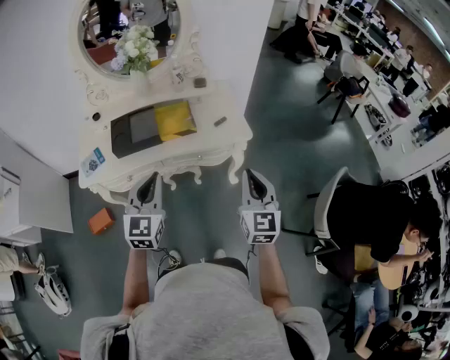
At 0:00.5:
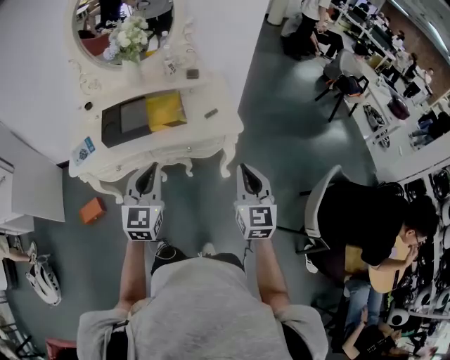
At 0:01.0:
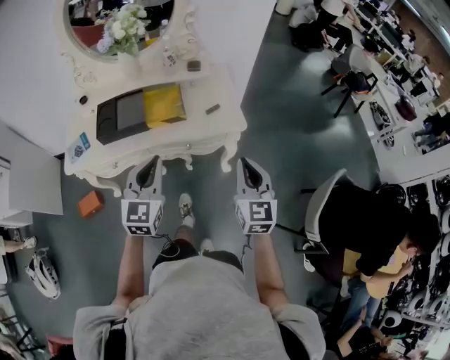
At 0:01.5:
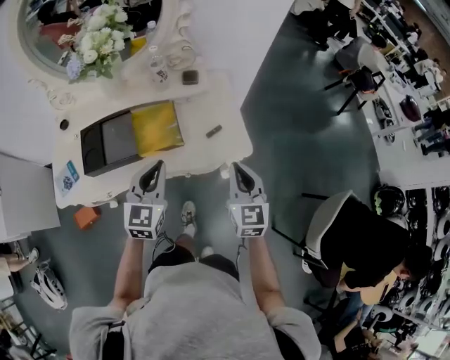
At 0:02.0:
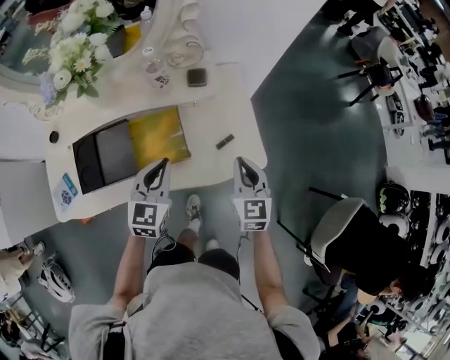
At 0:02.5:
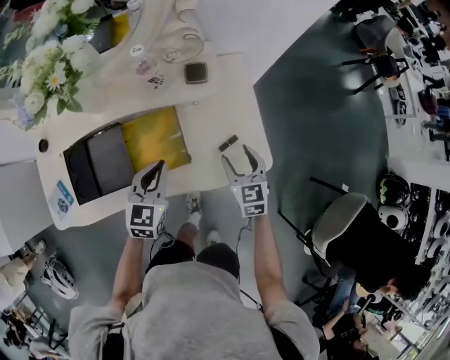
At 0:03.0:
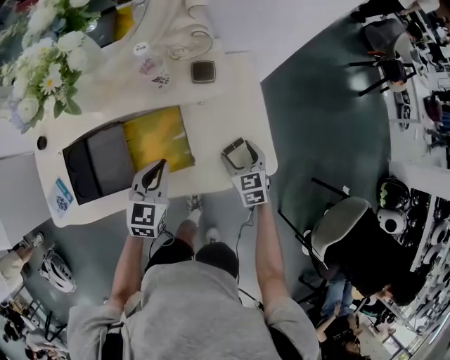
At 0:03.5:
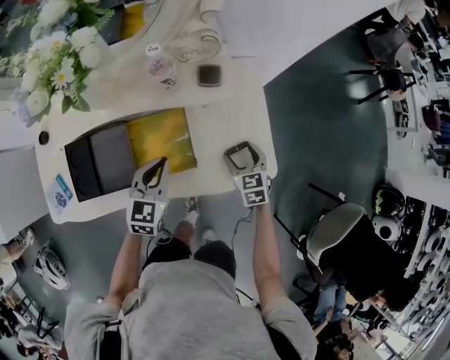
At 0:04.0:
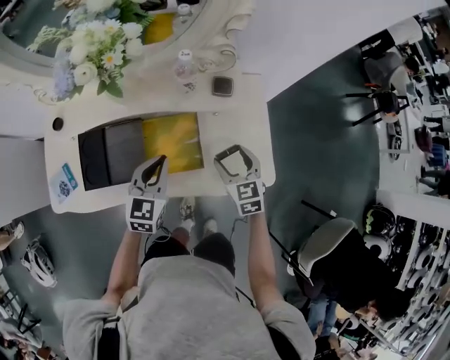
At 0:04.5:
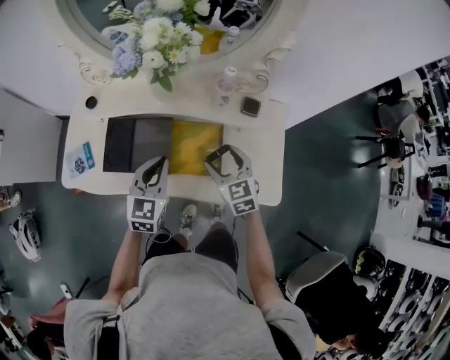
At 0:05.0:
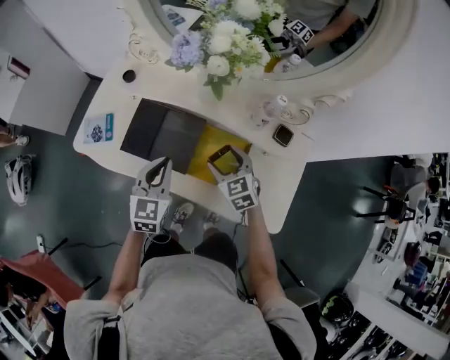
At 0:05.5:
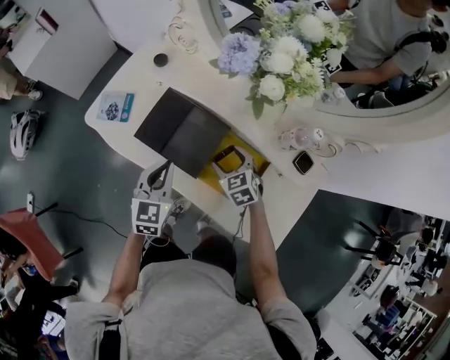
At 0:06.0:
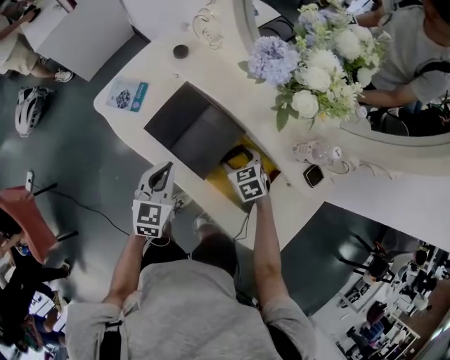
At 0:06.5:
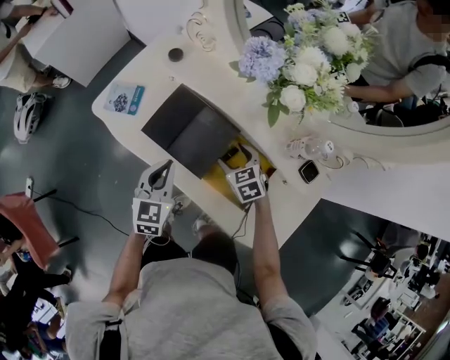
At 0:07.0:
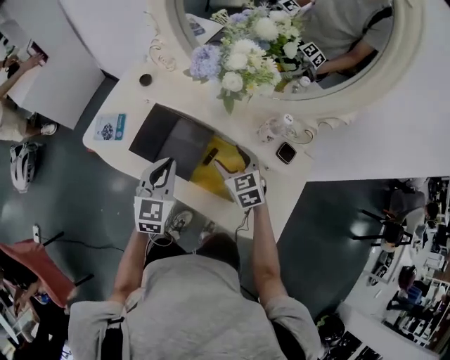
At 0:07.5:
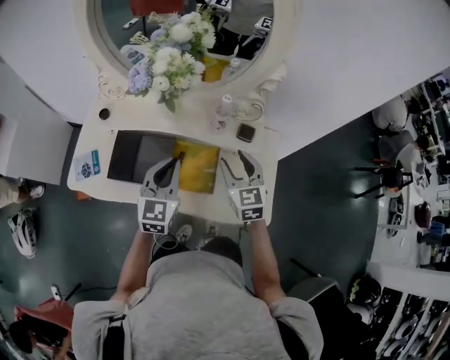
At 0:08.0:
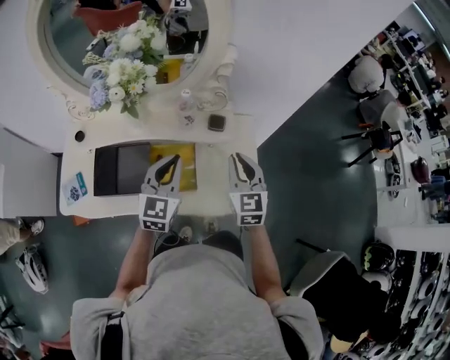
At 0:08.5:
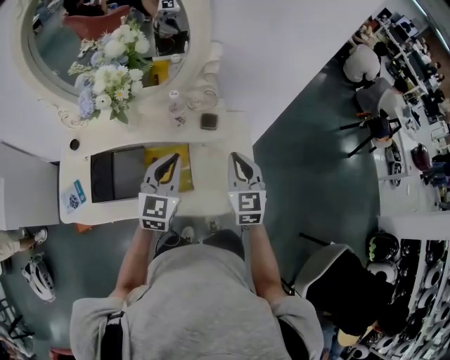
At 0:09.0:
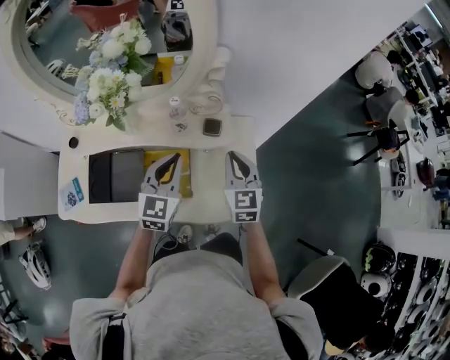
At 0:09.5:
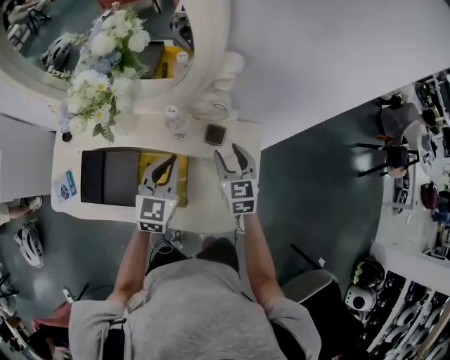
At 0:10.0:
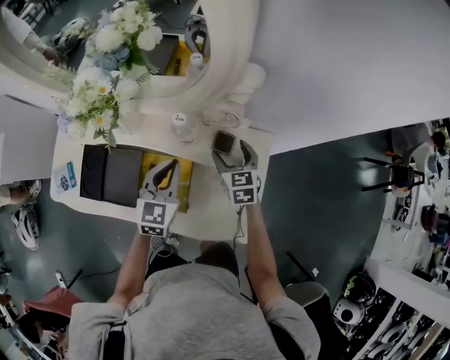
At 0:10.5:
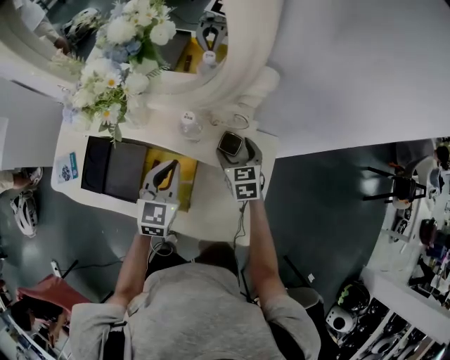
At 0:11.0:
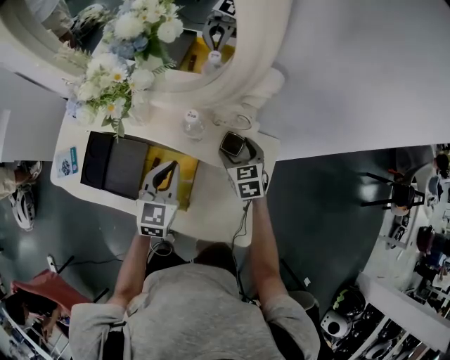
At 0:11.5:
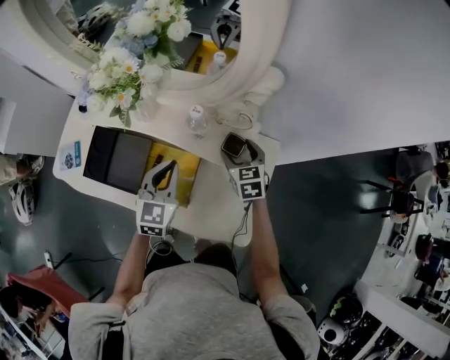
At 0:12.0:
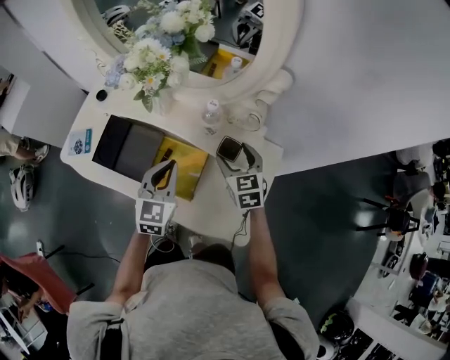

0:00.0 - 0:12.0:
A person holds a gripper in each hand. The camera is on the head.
0:00.0 - 0:02.0: The two grippers go roughly 35 cm forward and downward.
0:02.0 - 0:04.0: The left gripper goes approximately 5 cm to the left, while the right gripper goes about 15 cm to the left, forward and downward, changes its angle by approximately 20 degrees, and opens up.
0:04.0 - 0:06.0: The right gripper shifts by roughly 30 cm, and swivels roughly 60 degrees; the left gripper shifts by some 20 cm, and rotates some 50 degrees.
0:06.0 - 0:08.0: The right gripper changes place by roughly 40 cm, points its fingers roughly 40 degrees further upward, and closes. Meanwhile the left gripper shifts by approximately 30 cm, and rotates roughly 50 degrees.
0:08.0 - 0:10.0: The right gripper goes some 25 cm forward and downward, turns by some 30 degrees, and opens up, while the left gripper heads forward and downward, covering roughly 15 cm.
0:10.0 - 0:12.0: The left gripper shifts about 10 cm backward and to the left. Meanwhile the right gripper shifts some 10 cm upward and to the left.

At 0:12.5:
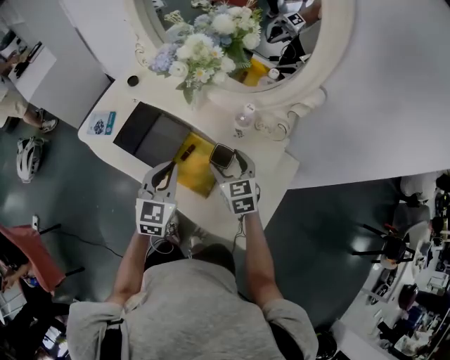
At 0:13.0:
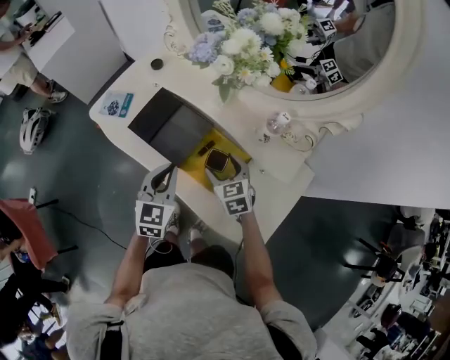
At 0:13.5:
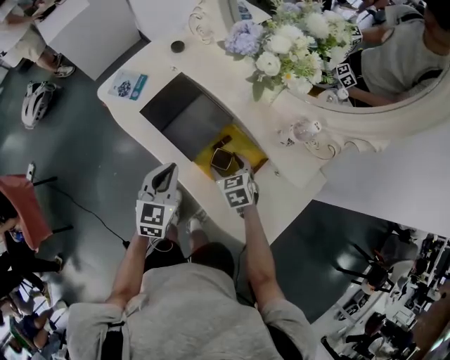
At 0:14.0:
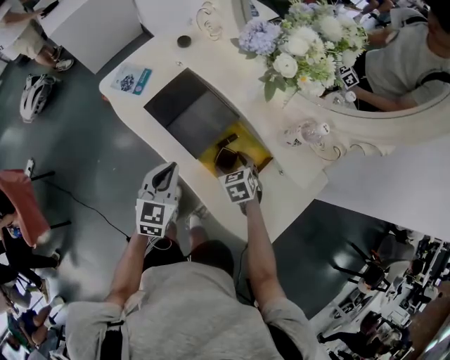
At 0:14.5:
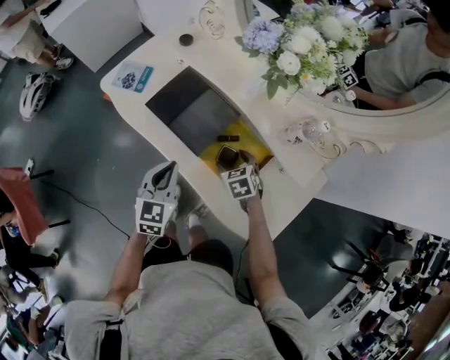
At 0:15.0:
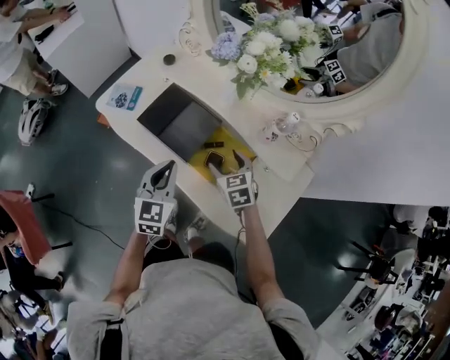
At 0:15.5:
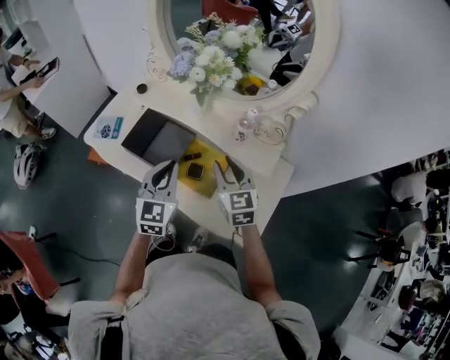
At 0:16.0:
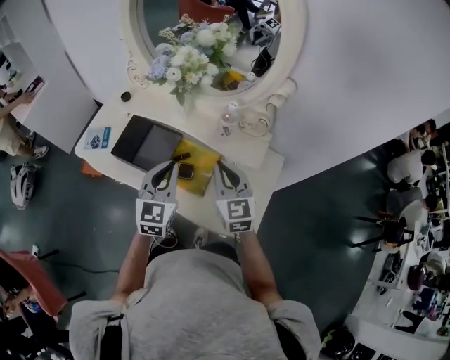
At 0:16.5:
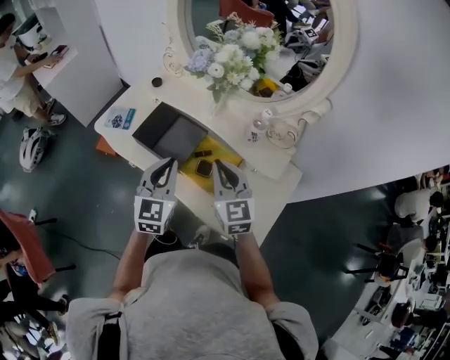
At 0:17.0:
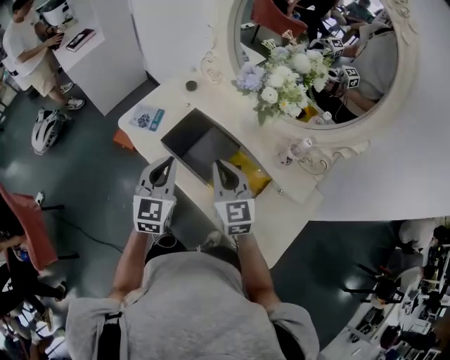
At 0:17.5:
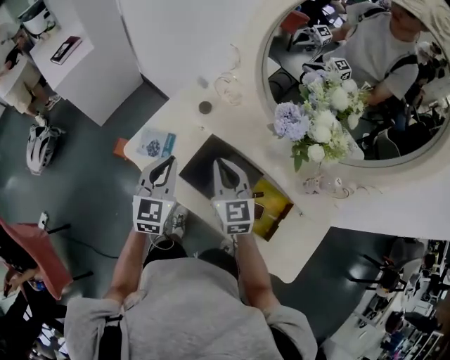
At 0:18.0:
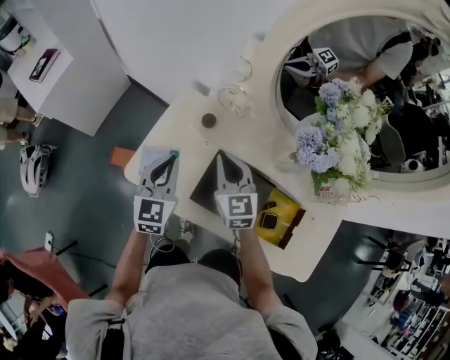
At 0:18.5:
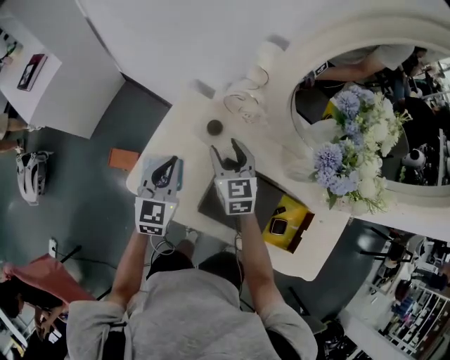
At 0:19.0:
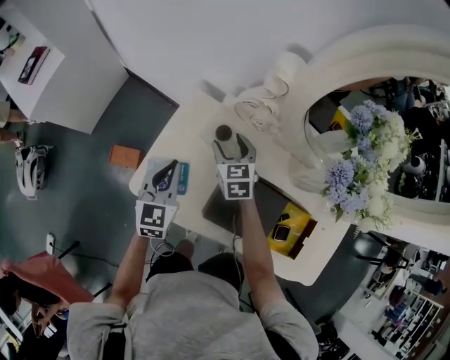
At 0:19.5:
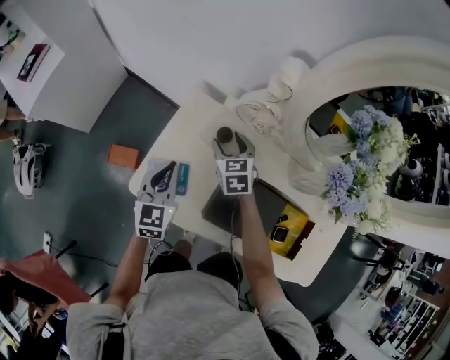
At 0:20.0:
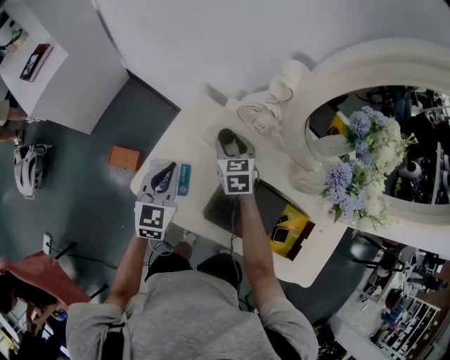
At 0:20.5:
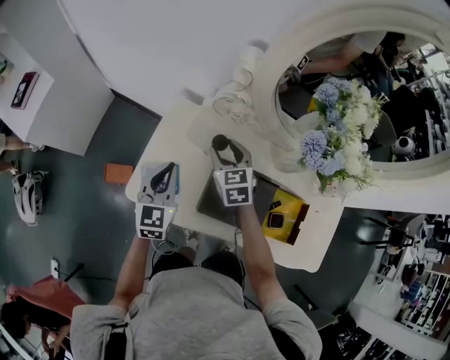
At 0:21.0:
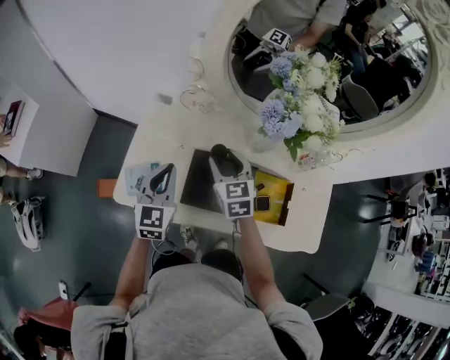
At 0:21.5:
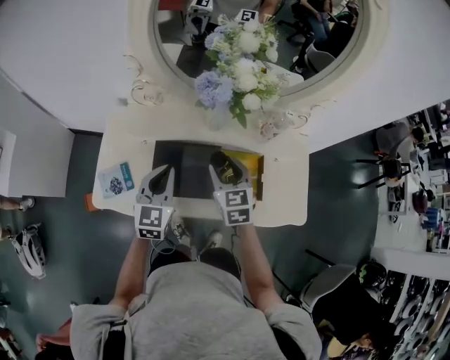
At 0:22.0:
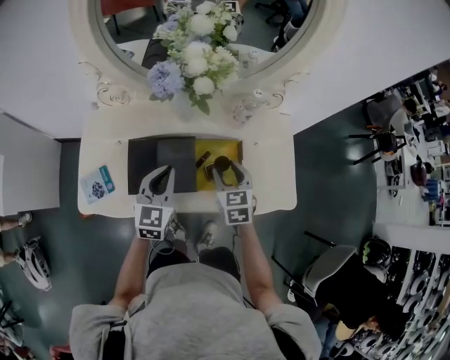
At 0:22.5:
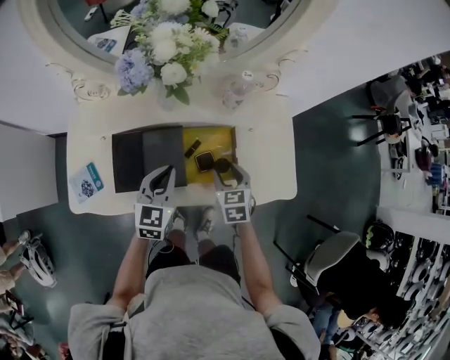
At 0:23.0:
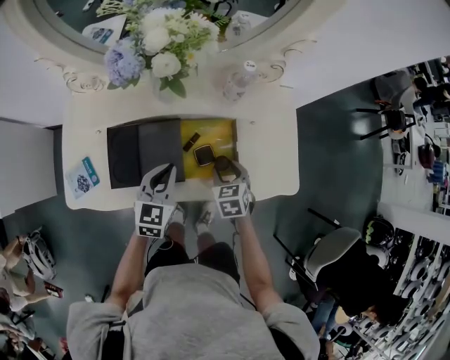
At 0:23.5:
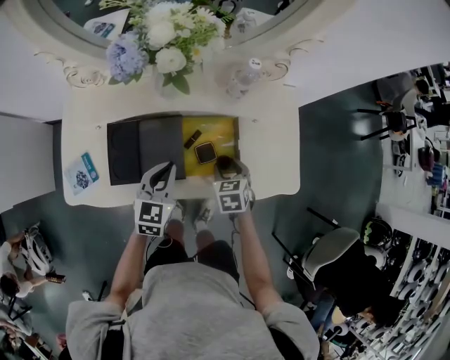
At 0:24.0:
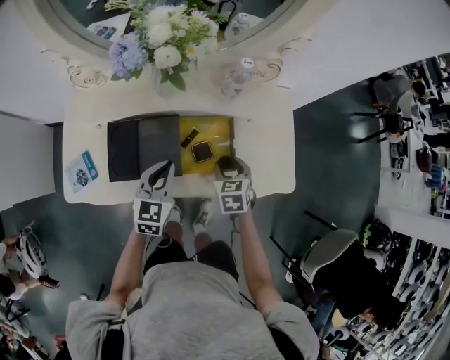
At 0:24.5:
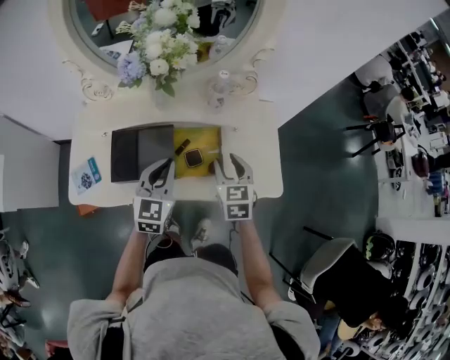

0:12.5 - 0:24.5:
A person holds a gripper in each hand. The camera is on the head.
0:12.5 - 0:14.5: The left gripper travels to the left and downward by approximately 15 cm. Meanwhile the right gripper is displaced downward and to the left by approximately 20 cm, and swivels roughly 30 degrees.
0:14.5 - 0:16.5: The left gripper travels upward and to the right by about 15 cm. The right gripper goes approximately 25 cm upward, points its fingers some 50 degrees further upward, and closes its fingers.
0:16.5 - 0:18.5: The two grippers travel together, forward and to the left, roughly 40 cm. The right gripper opens up.
0:20.5 - 0:22.5: The right gripper shifts by some 40 cm, and turns by roughly 30 degrees; the left gripper shifts by some 35 cm, and turns by about 30 degrees.
0:22.5 - 0:24.5: The left gripper is displaced upward by roughly 5 cm. Meanwhile the right gripper goes some 10 cm upward.

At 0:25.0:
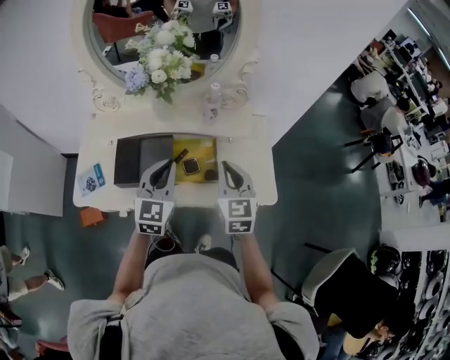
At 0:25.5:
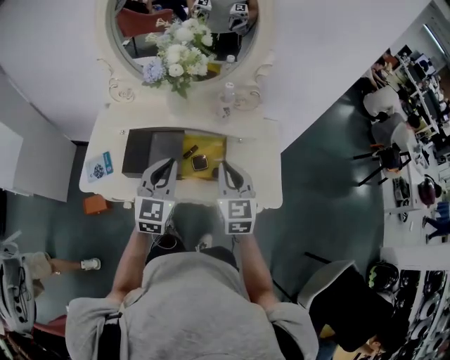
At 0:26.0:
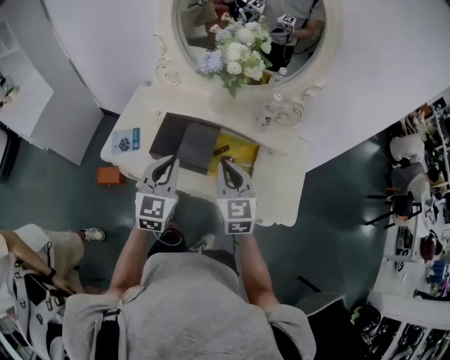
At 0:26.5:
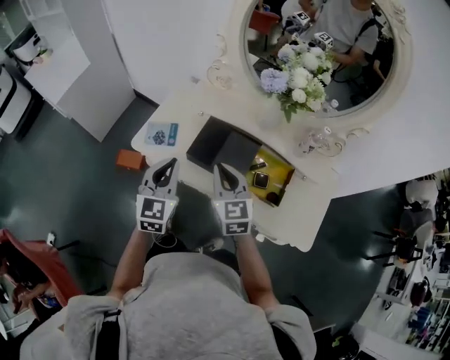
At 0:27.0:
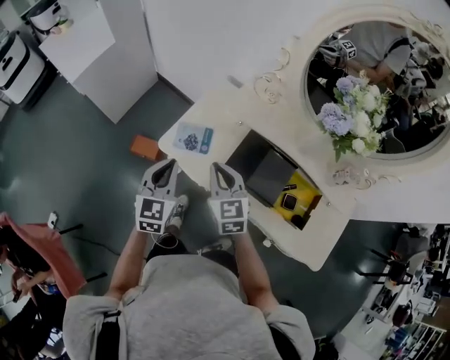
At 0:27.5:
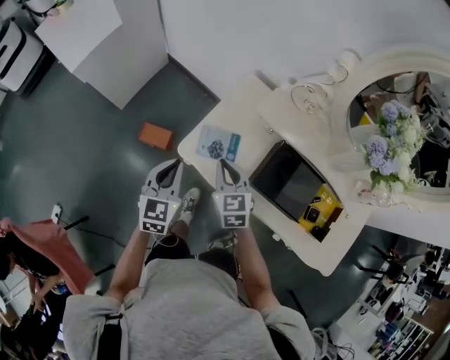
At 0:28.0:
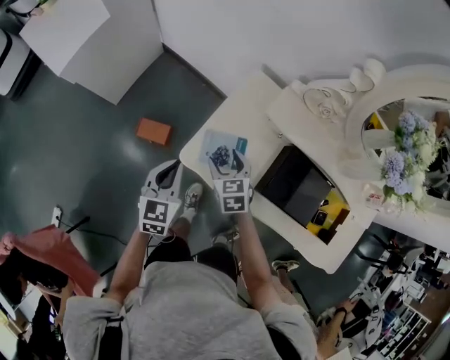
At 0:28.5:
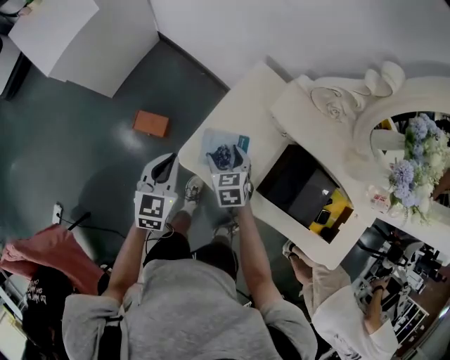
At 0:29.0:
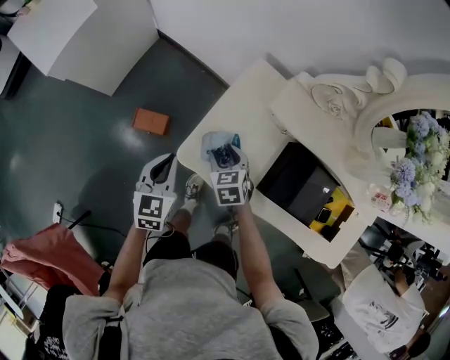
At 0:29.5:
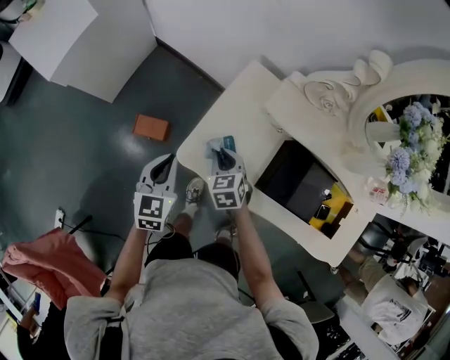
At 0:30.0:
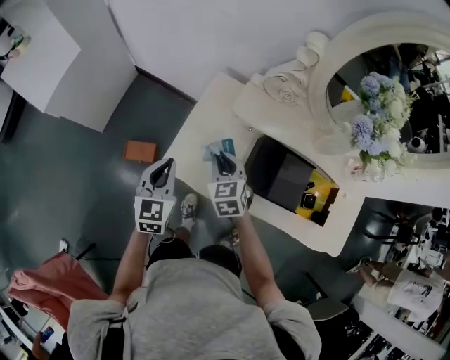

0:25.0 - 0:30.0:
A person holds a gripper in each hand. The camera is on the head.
0:25.0 - 0:27.5: The pair of grippers is taken about 50 cm. The right gripper swivels about 40 degrees, while the left gripper changes its angle by approximately 40 degrees.
0:27.5 - 0:30.0: Both grippers travel together forward, some 5 cm. The left gripper goes downward and returns, some 10 cm each way. The right gripper moves about 15 cm downward and comes back, and opens and closes again.
